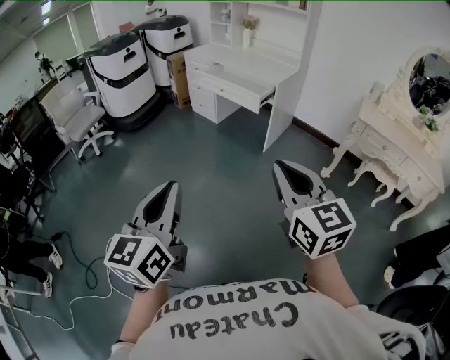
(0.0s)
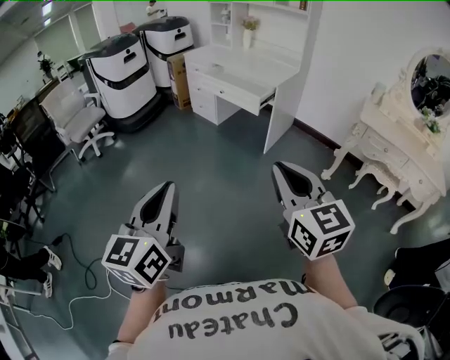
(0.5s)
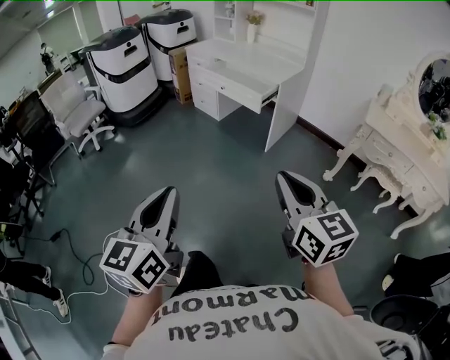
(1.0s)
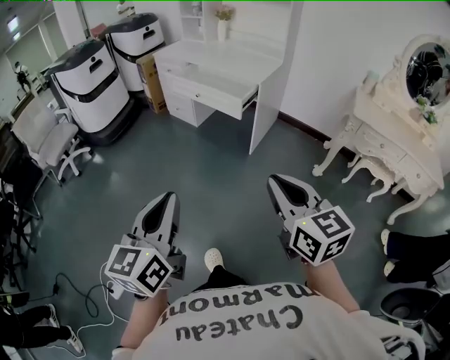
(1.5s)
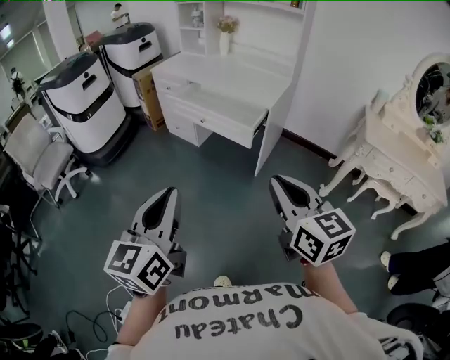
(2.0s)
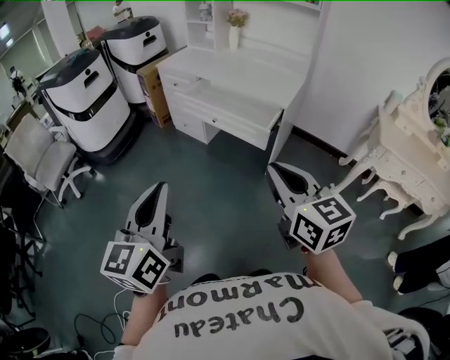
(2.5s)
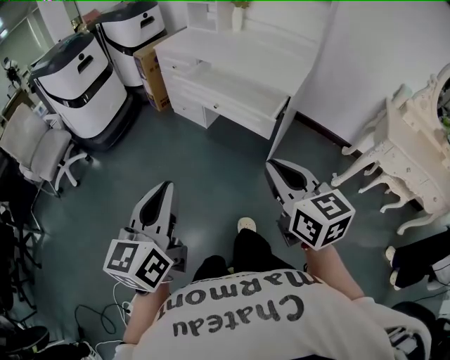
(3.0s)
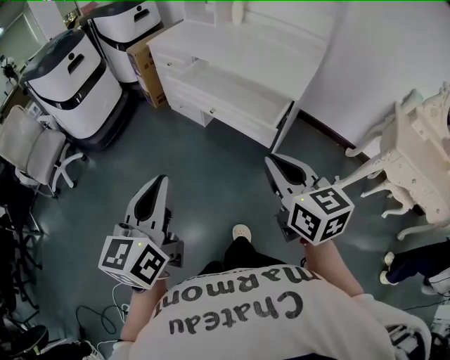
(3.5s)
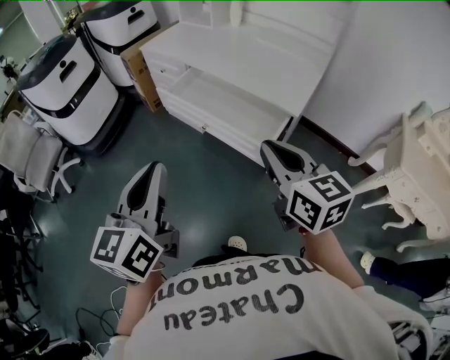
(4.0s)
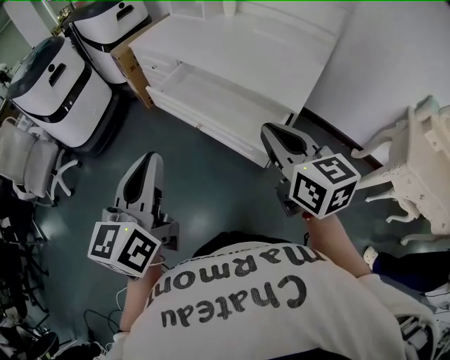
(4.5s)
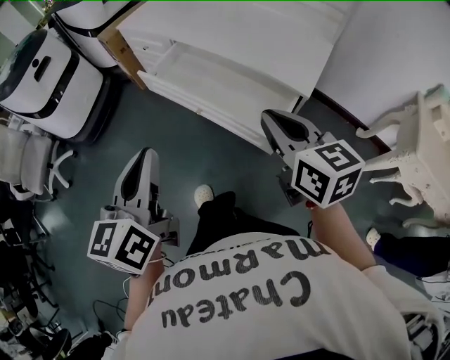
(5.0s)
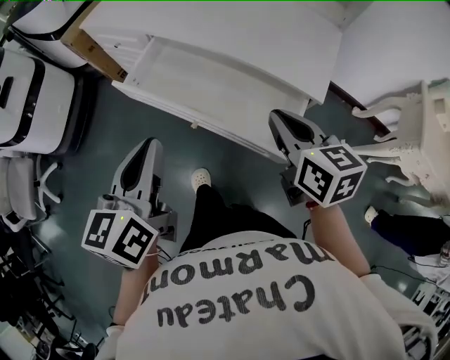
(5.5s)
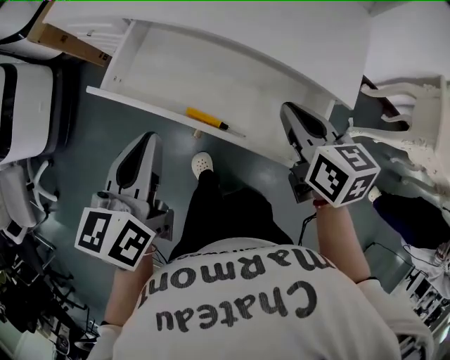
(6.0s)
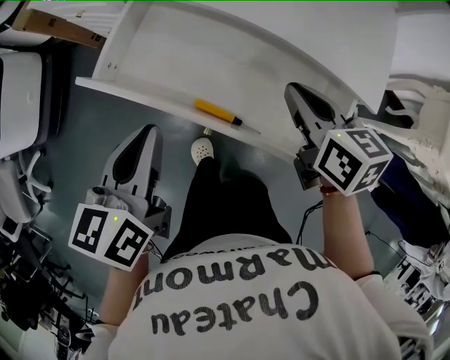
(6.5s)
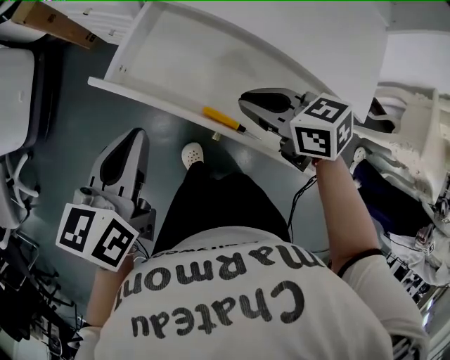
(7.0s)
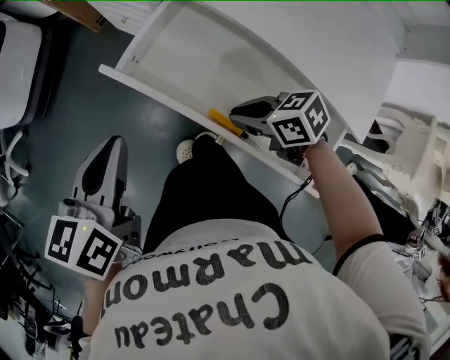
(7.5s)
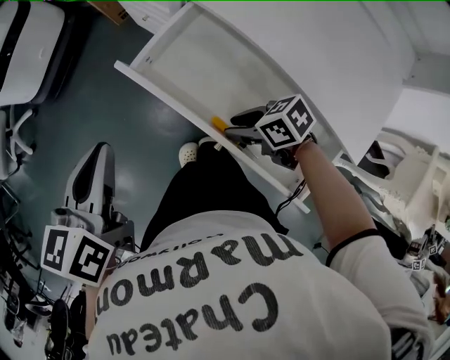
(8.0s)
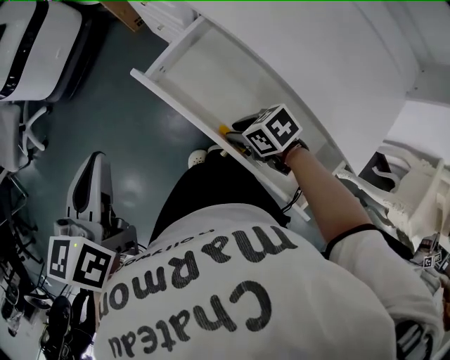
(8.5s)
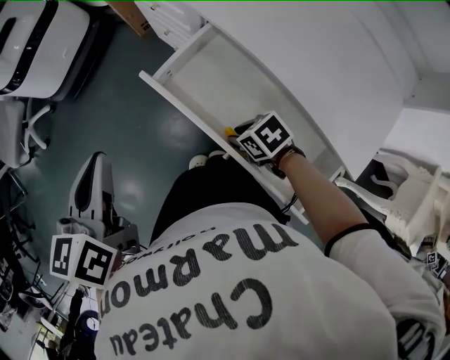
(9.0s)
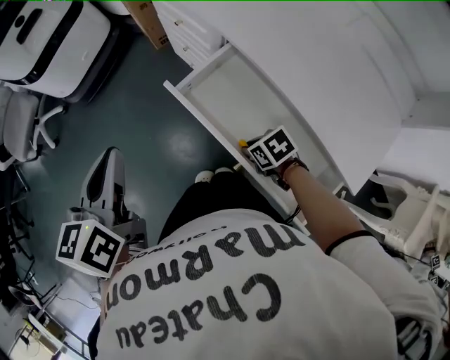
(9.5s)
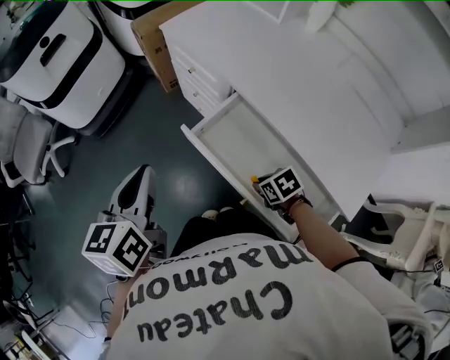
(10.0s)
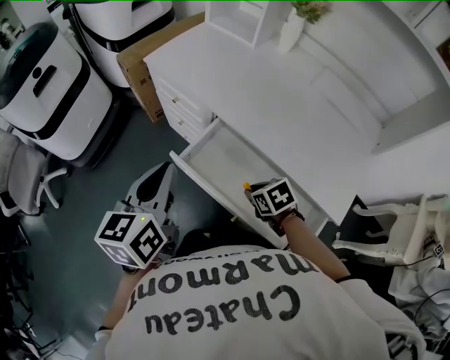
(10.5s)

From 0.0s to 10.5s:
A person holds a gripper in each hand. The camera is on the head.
From 0.0s to 2.0s: The two grippers go some 35 cm forward.
From 2.0s to 4.0s: Both grippers travel together forward, roughly 35 cm.
From 4.0s to 6.5s: Both grippers move forward and downward, about 50 cm. The right gripper changes its angle by approximately 30 degrees, while the left gripper swivels approximately 40 degrees.
From 6.5s to 8.5s: The left gripper ends up some 20 cm from where it was, and rotates some 30 degrees. Meanwhile the right gripper ends up some 20 cm from where it was, changes its angle by some 60 degrees, and opens its fingers.
From 8.5s to 10.5s: Both grippers travel together upward, approximately 10 cm. The right gripper turns by roughly 30 degrees.

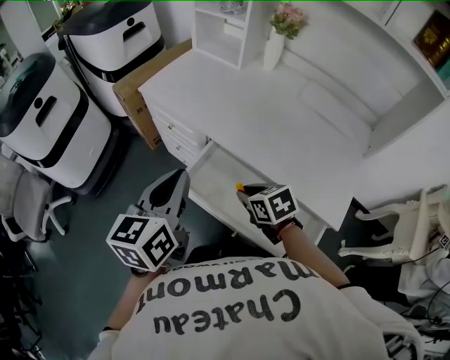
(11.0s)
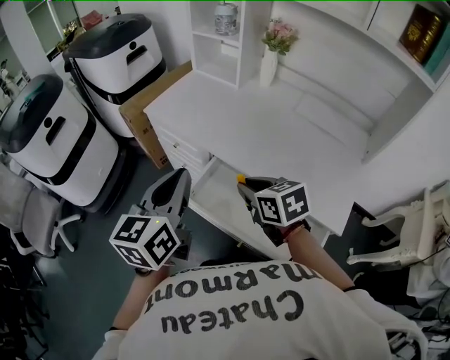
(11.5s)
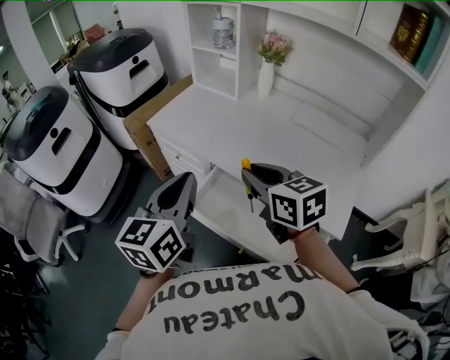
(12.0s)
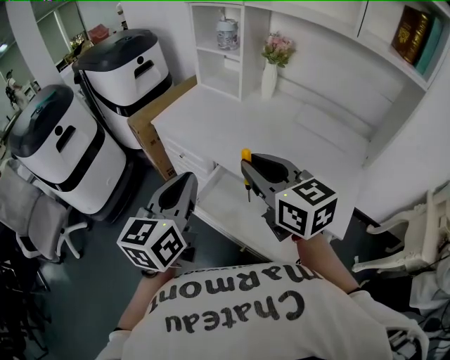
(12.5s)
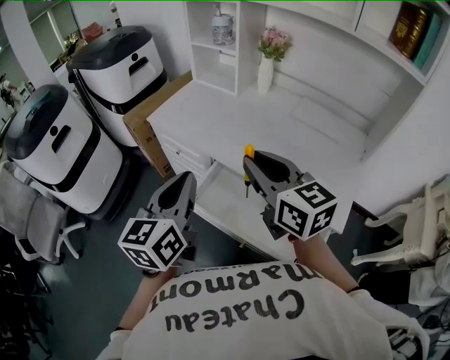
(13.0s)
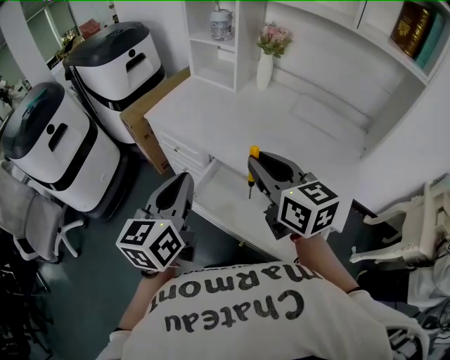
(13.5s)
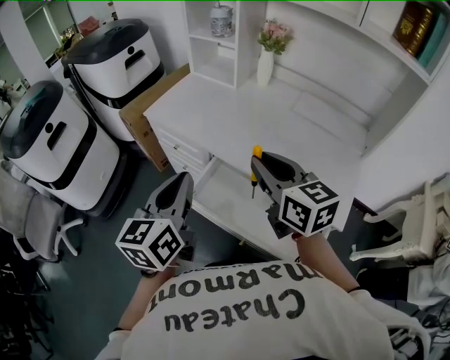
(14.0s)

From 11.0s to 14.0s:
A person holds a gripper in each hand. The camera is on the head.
From 11.0s to 12.5s: The right gripper heads upward, covering approximately 25 cm, and tilts its fingers approximately 40 degrees upward. Meanwhile the left gripper moves upward, roughly 5 cm.
From 12.5s to 14.0s: The grippers stay close to where they were, moving slightly.

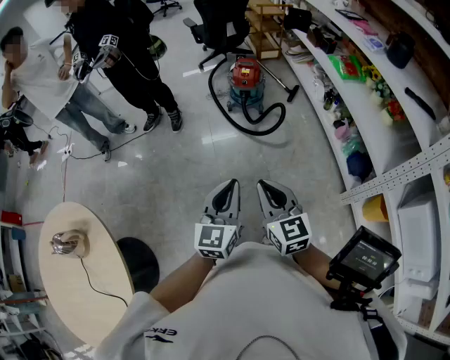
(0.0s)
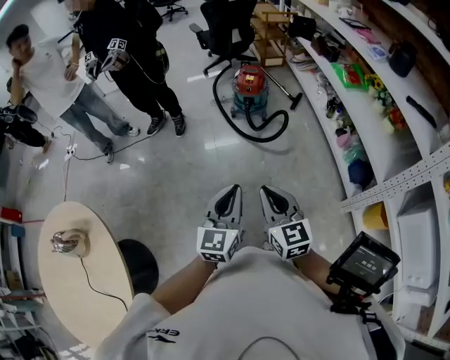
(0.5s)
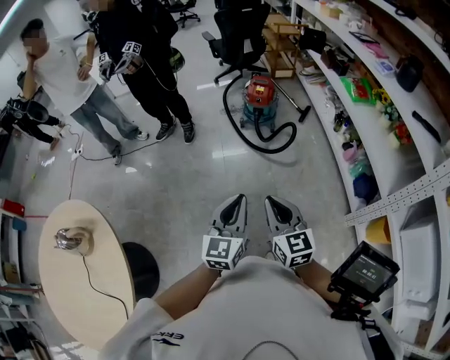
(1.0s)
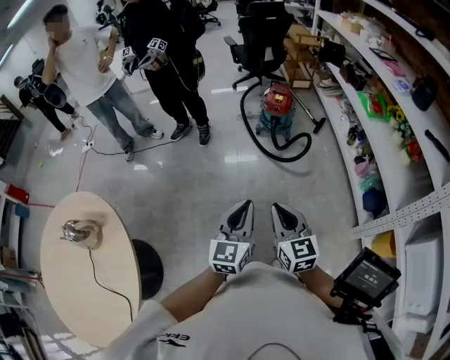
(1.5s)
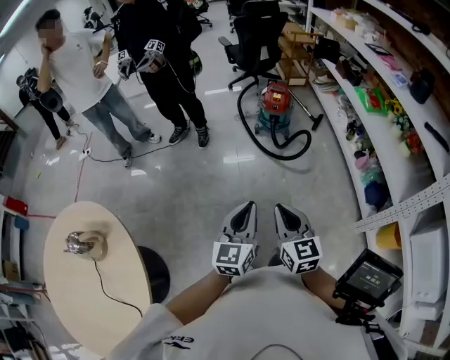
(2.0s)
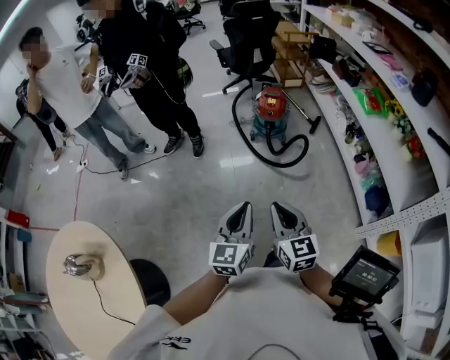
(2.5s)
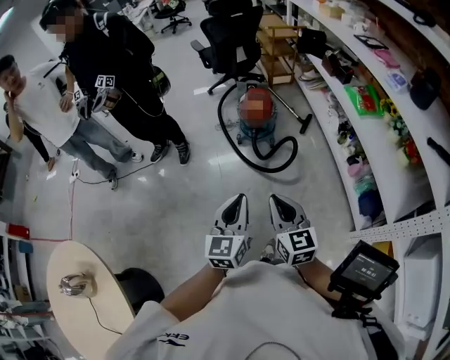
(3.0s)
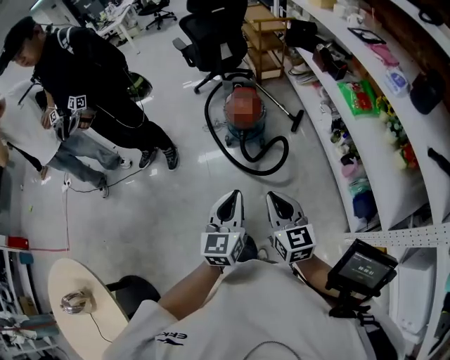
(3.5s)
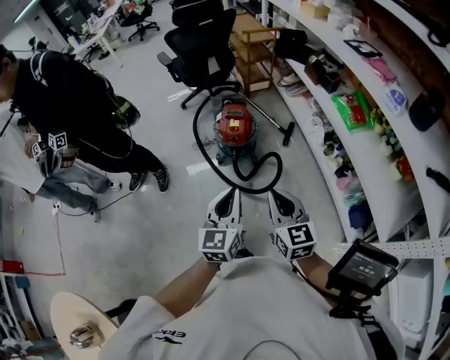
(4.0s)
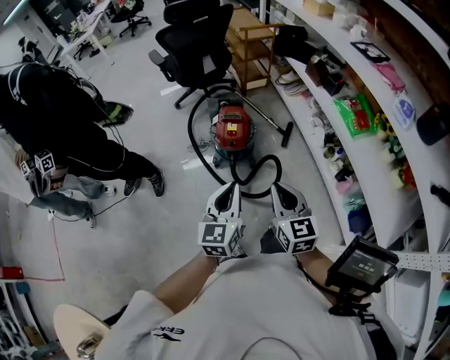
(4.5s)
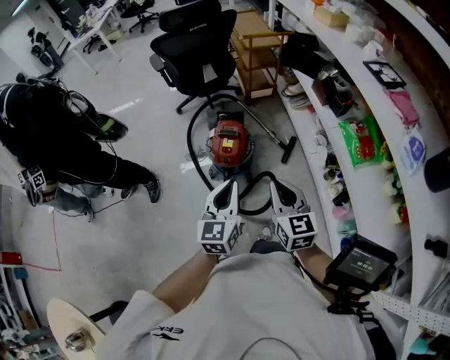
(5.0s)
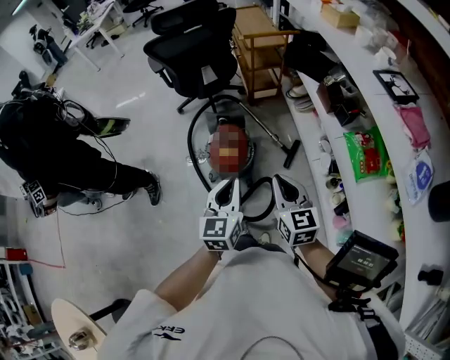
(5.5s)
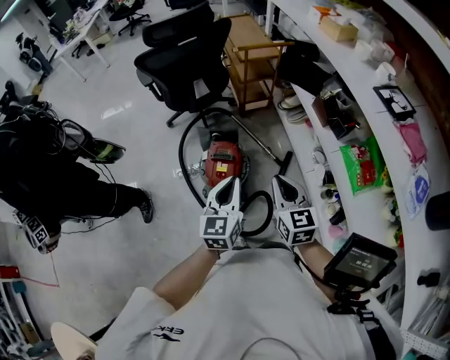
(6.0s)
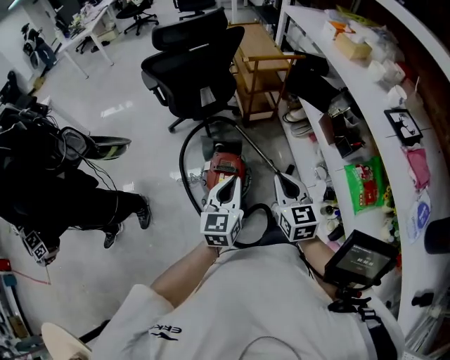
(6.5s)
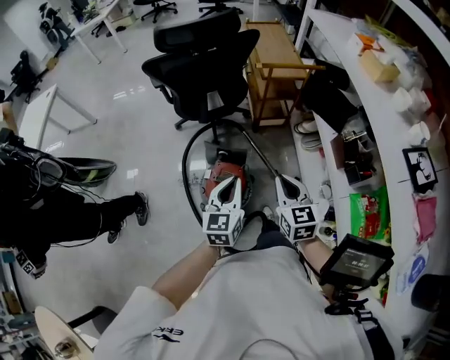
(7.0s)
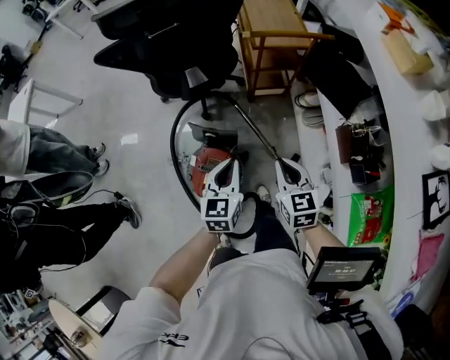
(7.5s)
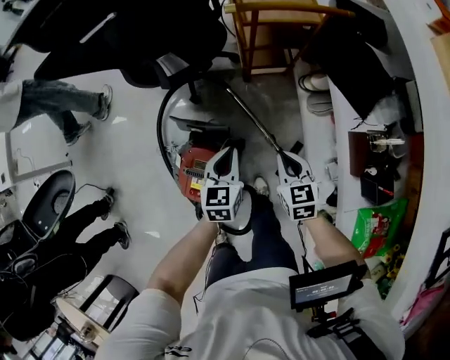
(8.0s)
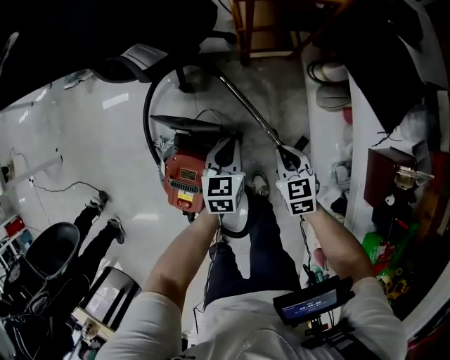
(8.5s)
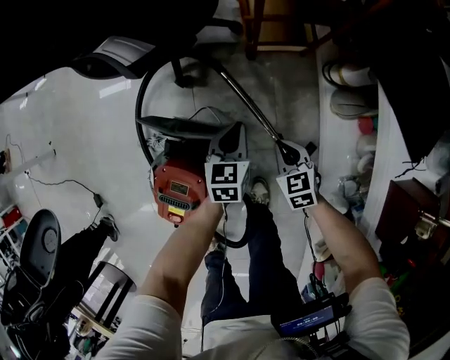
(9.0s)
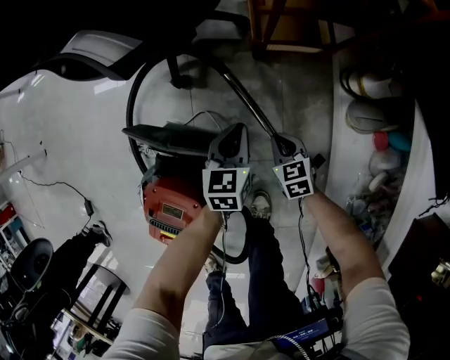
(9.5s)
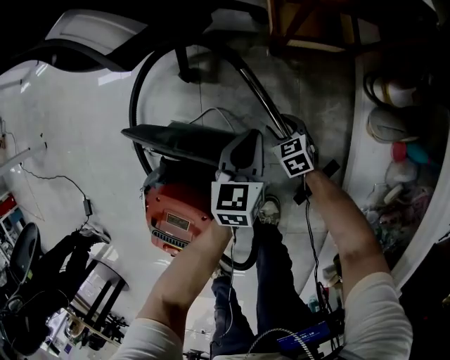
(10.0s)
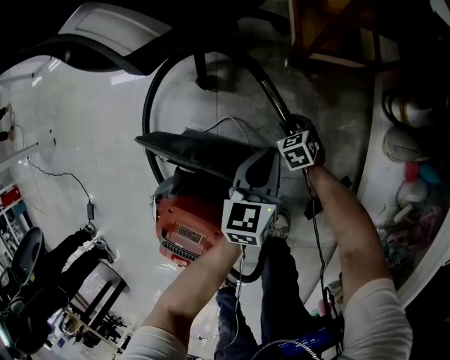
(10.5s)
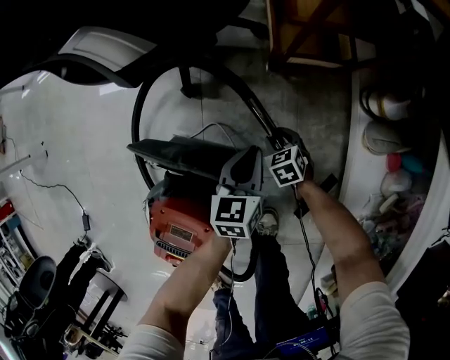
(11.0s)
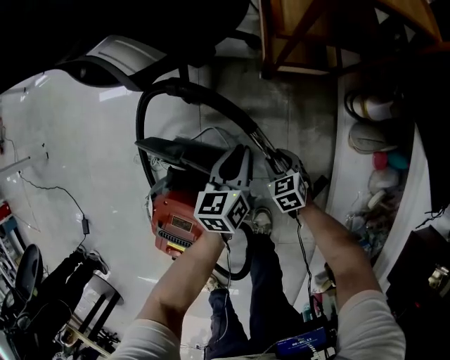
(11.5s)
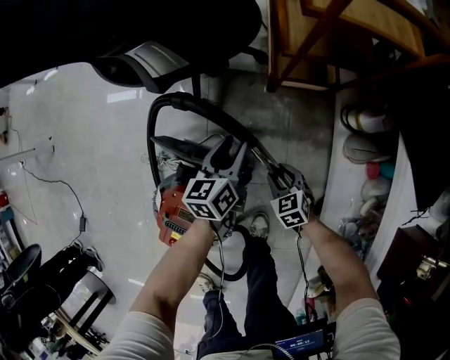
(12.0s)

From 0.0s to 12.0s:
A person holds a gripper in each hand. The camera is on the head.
From 0.0s to 2.0s: Both grippers move to the left, approximately 10 cm.
From 2.0s to 4.0s: The pair of grippers is taken forward, some 50 cm.
From 4.0s to 6.0s: The pair of grippers is taken forward, approximately 40 cm.
From 6.0s to 8.0s: Both grippers travel together forward and downward, some 50 cm. The left gripper changes its angle by roughly 20 degrees. The right gripper rotates about 20 degrees.
From 8.0s to 10.0s: The left gripper travels downward and forward by about 35 cm. Meanwhile the right gripper heads downward, covering roughly 50 cm, rotates approximately 30 degrees, and opens.
From 10.0s to 12.0s: The left gripper heads upward, covering about 10 cm, swivels about 20 degrees, and opens up. The right gripper heads upward and backward, covering roughly 15 cm.

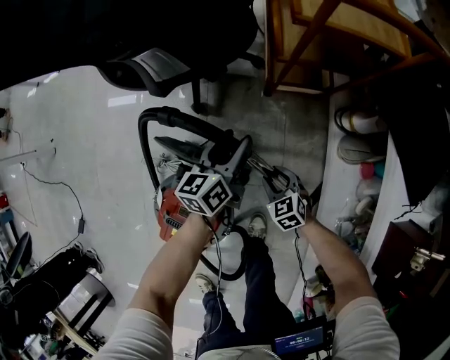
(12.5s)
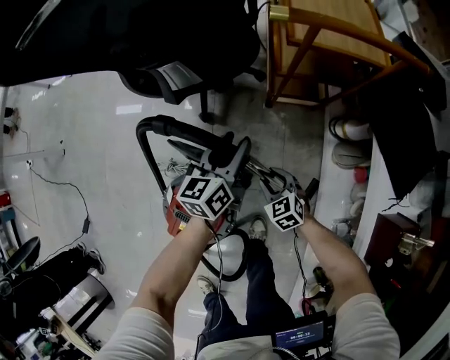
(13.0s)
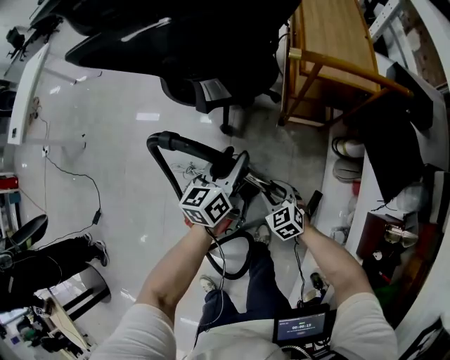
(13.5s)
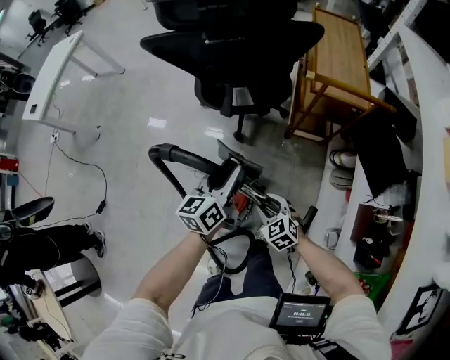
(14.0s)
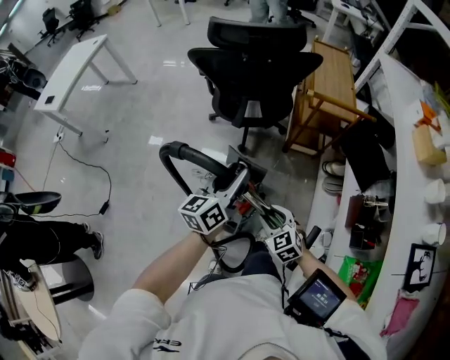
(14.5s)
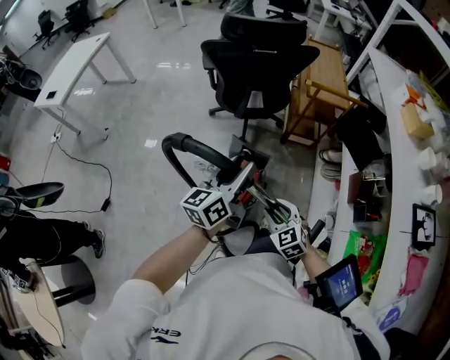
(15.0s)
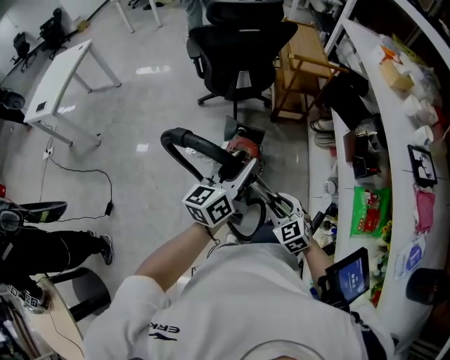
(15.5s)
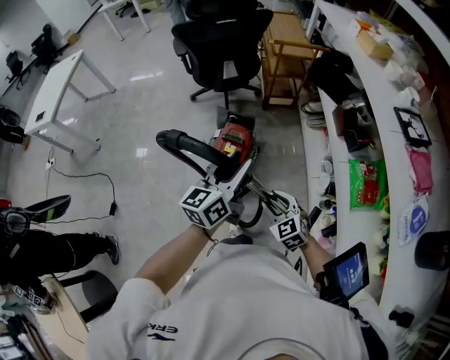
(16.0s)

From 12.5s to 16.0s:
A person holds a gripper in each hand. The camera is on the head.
From 12.5s to 14.5s: The grippers both shift upward, backward and to the left by some 50 cm.
From 14.5s to 16.0s: Both grippers travel together backward, some 30 cm.
